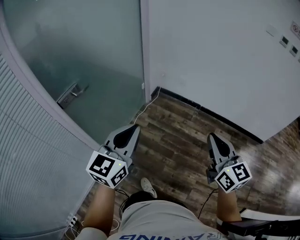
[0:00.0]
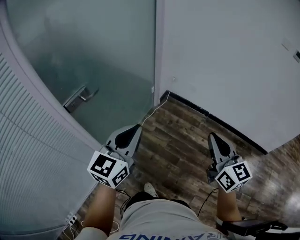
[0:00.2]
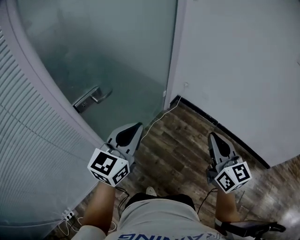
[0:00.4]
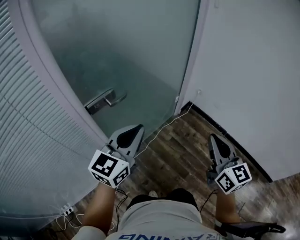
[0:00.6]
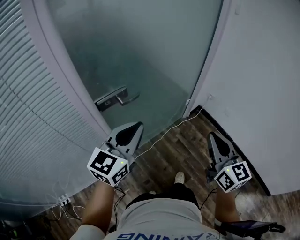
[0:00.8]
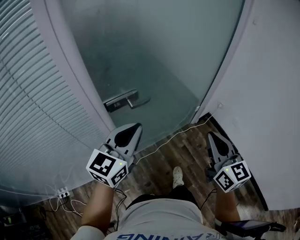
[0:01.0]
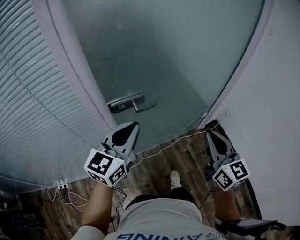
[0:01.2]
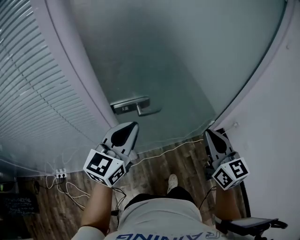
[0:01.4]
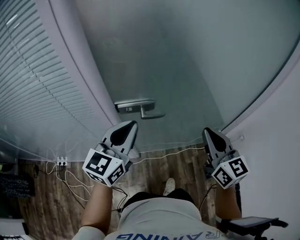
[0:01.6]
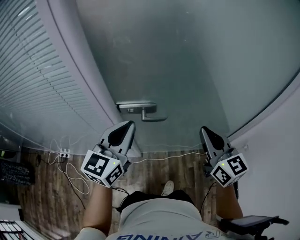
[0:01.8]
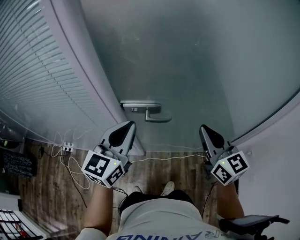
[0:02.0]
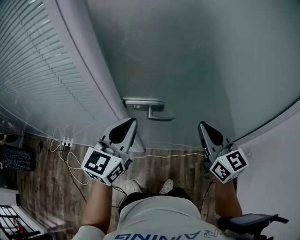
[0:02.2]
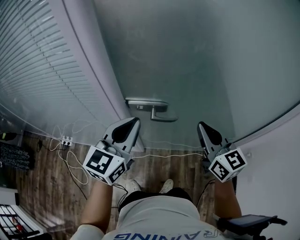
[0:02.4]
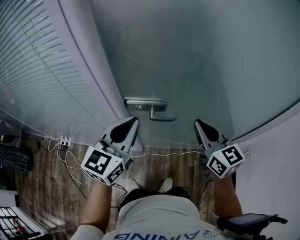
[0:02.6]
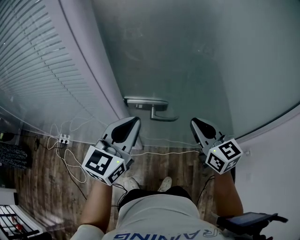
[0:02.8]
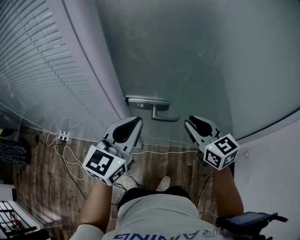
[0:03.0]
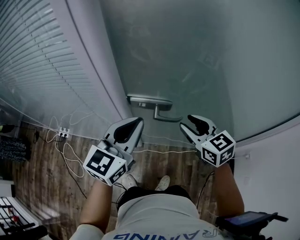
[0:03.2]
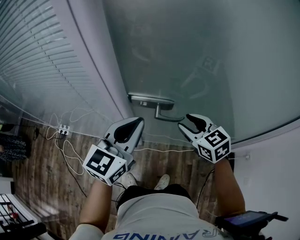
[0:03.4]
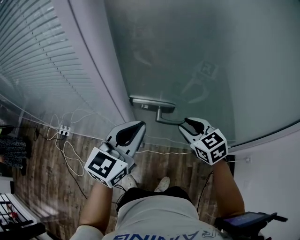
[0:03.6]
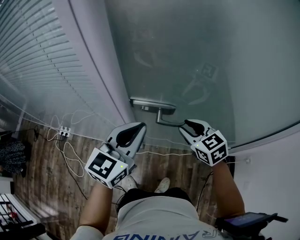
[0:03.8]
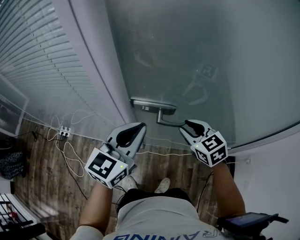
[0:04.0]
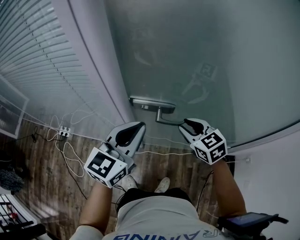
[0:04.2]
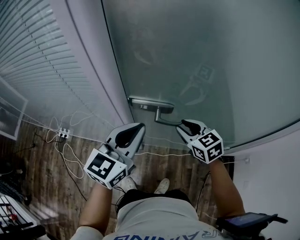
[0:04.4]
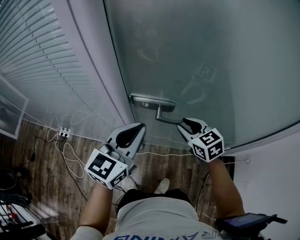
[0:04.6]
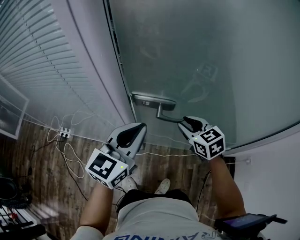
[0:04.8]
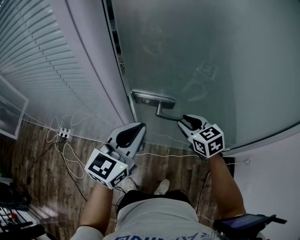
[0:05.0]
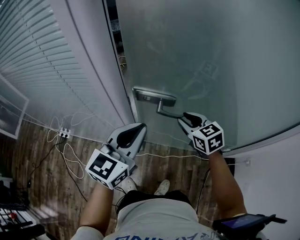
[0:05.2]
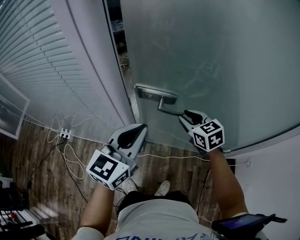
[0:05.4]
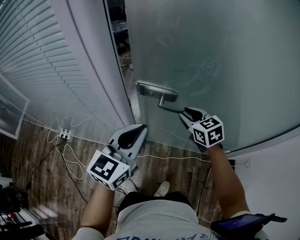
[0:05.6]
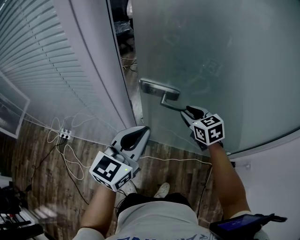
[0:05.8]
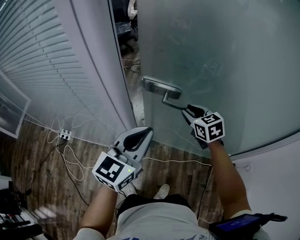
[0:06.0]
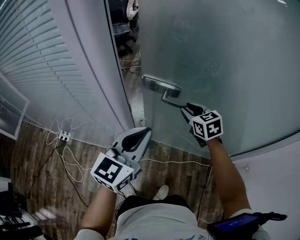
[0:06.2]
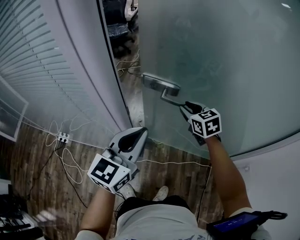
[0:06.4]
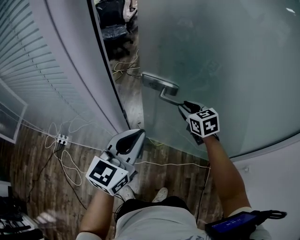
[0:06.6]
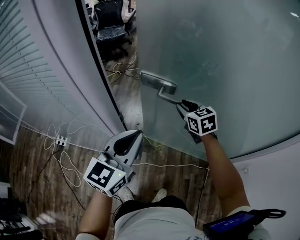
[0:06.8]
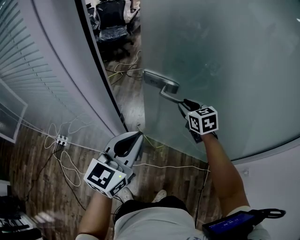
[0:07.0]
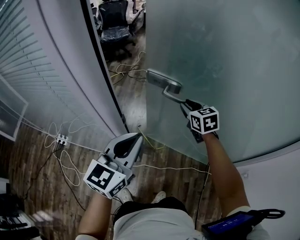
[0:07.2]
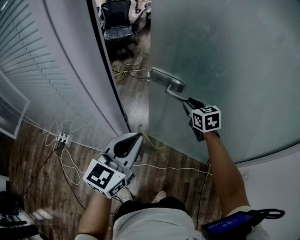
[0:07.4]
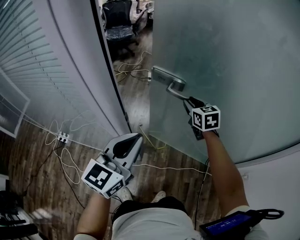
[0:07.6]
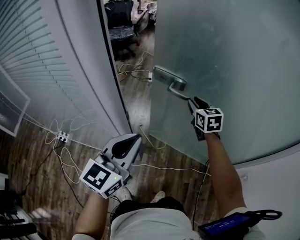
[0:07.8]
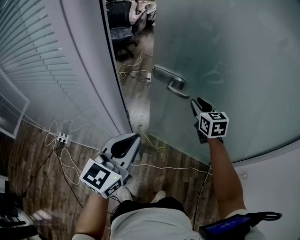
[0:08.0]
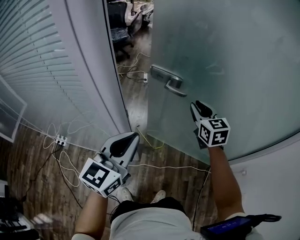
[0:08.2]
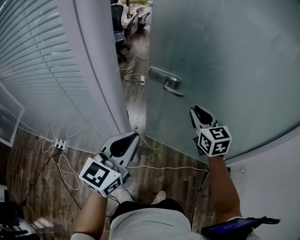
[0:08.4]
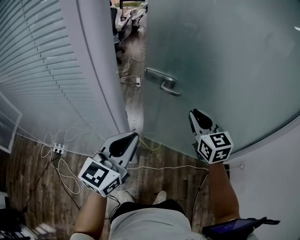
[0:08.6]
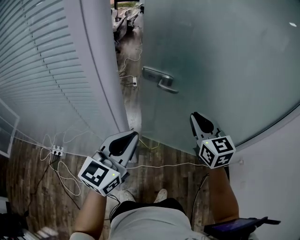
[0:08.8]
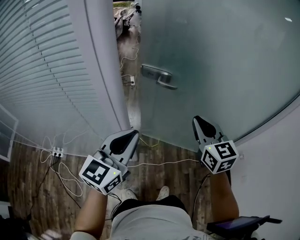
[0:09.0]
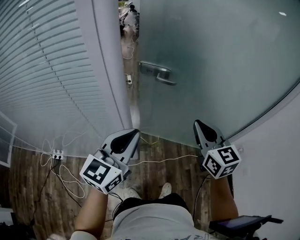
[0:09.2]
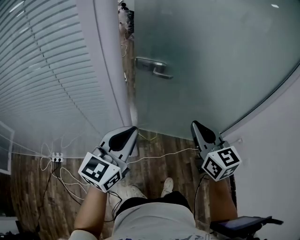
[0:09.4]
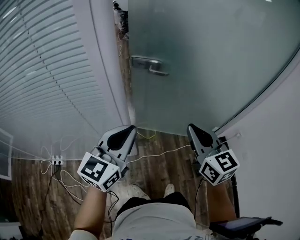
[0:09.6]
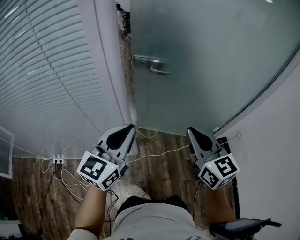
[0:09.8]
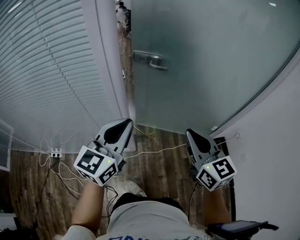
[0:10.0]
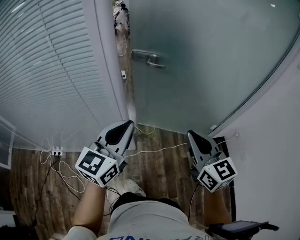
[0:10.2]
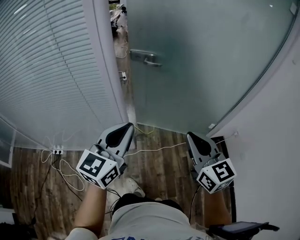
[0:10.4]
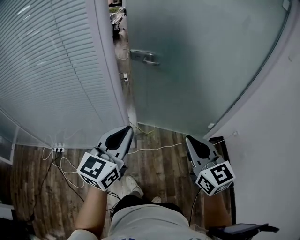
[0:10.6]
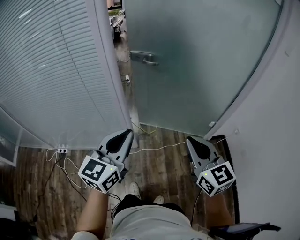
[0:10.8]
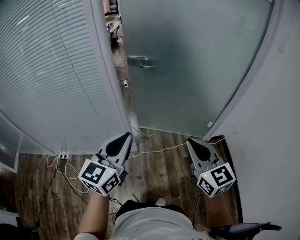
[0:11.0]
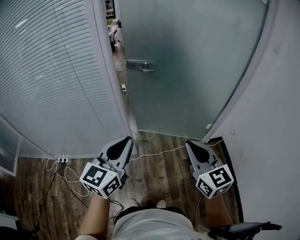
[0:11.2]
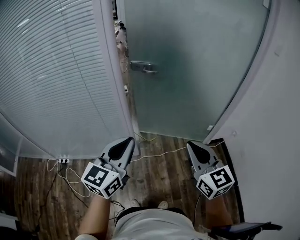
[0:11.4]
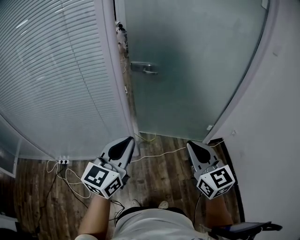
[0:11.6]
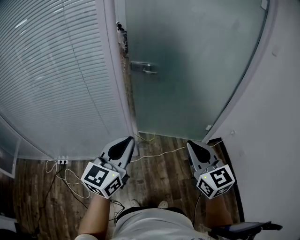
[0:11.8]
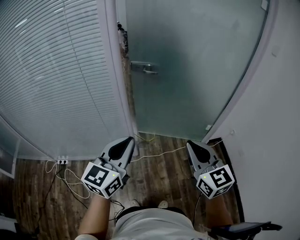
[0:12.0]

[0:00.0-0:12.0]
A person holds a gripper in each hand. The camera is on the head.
0:00.0 to 0:01.6: The right gripper moves roughly 50 cm, and rotates roughly 60 degrees, while the left gripper moves approximately 35 cm, and rotates roughly 50 degrees.
0:01.6 to 0:03.0: The right gripper shifts some 15 cm forward, to the left and downward, and turns by some 30 degrees.
0:03.0 to 0:04.4: The right gripper goes roughly 10 cm downward.
0:04.4 to 0:06.0: The right gripper moves forward, approximately 10 cm.
0:06.0 to 0:07.6: The right gripper shifts approximately 10 cm forward.
0:07.6 to 0:09.0: The right gripper shifts roughly 25 cm backward and upward, and closes up. The left gripper shifts approximately 5 cm backward.
0:09.0 to 0:10.4: The right gripper travels backward by approximately 25 cm, while the left gripper shifts about 15 cm backward.
0:10.4 to 0:12.0: The grippers both shift backward by approximately 10 cm.

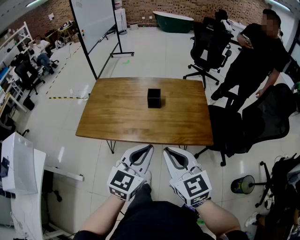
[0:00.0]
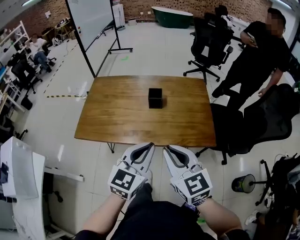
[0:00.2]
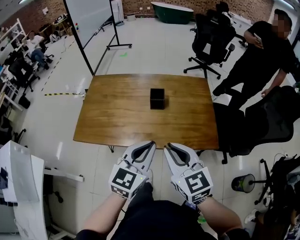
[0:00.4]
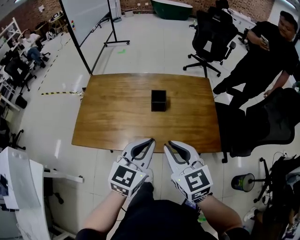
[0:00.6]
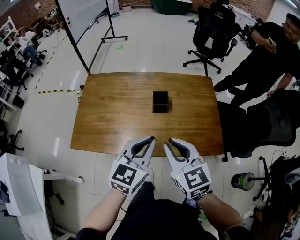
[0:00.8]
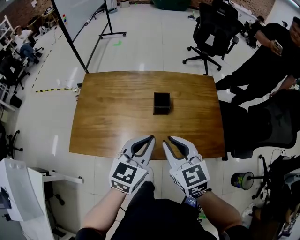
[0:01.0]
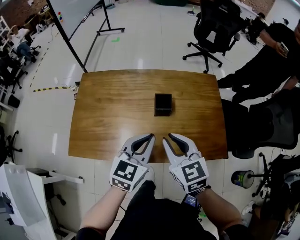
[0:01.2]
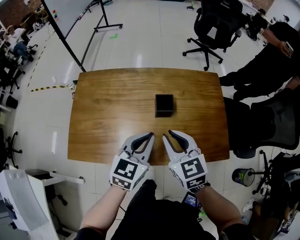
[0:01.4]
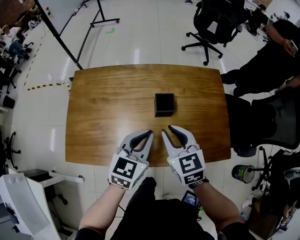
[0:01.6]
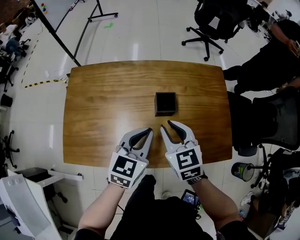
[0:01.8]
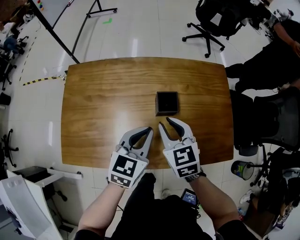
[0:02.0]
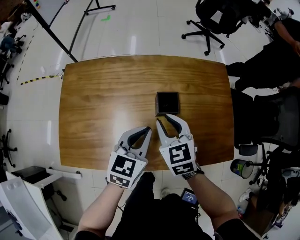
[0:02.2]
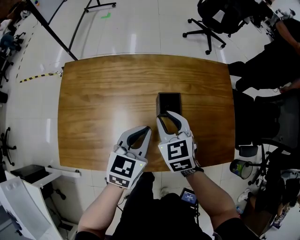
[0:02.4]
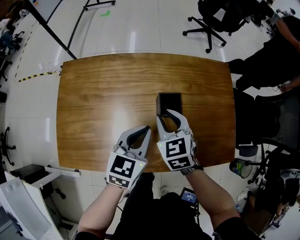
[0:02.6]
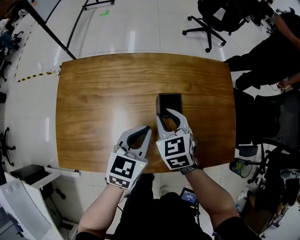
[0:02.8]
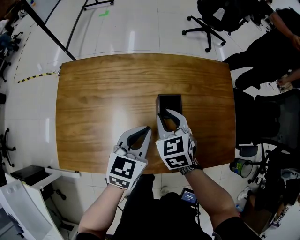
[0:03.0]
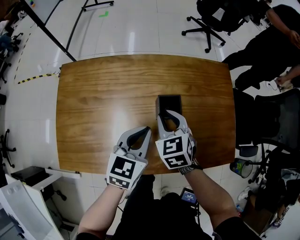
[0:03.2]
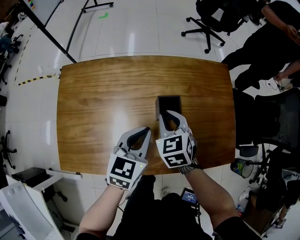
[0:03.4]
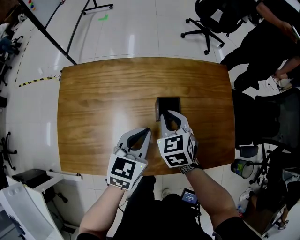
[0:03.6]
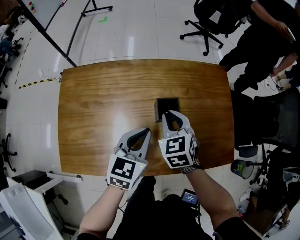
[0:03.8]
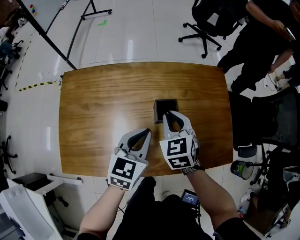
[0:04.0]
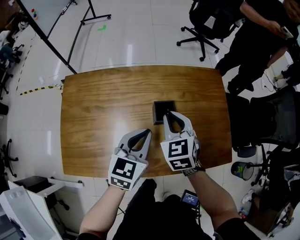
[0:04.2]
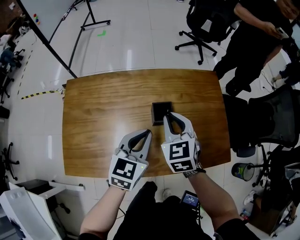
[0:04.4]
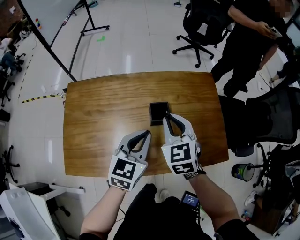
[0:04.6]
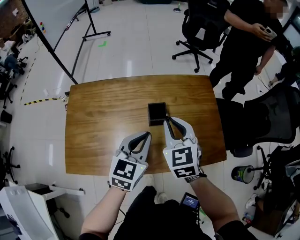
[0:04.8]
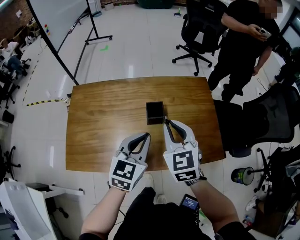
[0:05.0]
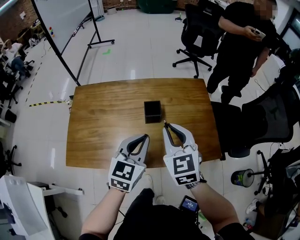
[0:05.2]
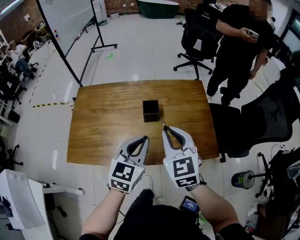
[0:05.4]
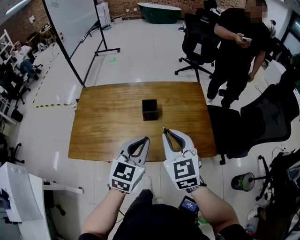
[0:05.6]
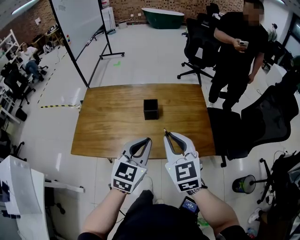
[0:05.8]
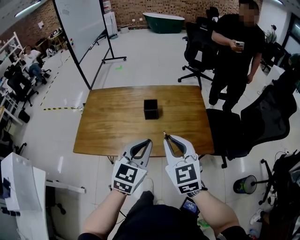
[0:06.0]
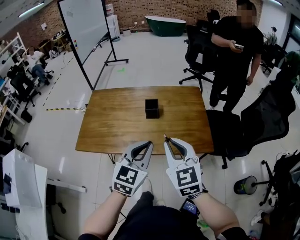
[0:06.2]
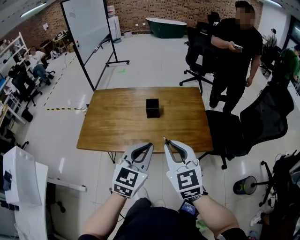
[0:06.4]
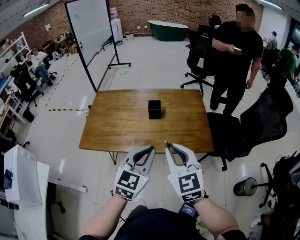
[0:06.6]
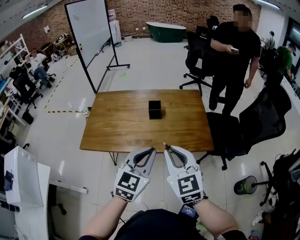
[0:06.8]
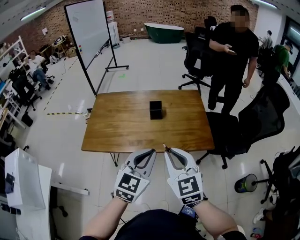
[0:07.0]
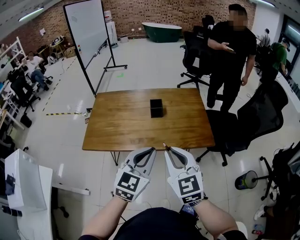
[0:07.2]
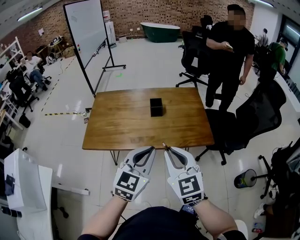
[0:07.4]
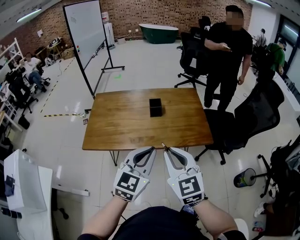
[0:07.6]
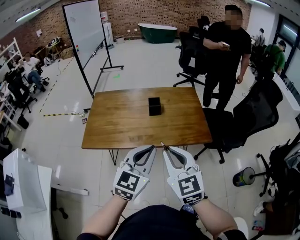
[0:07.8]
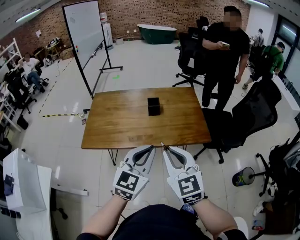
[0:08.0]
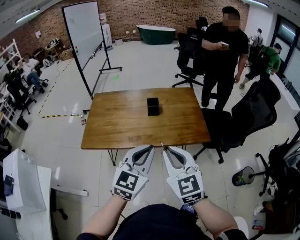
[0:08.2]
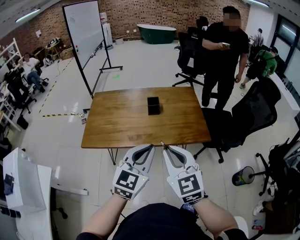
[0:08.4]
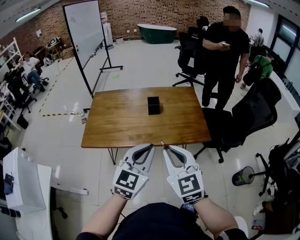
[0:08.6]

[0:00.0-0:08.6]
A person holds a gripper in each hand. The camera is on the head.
0:00.0 to 0:01.4: The right gripper heads forward and downward, covering about 35 cm, while the left gripper heads forward, covering roughly 30 cm.
0:01.4 to 0:02.8: The left gripper goes roughly 15 cm downward and forward; the right gripper moves forward and downward, about 20 cm.
0:02.8 to 0:04.4: The two grippers go about 10 cm upward.
0:04.4 to 0:05.8: The two grippers go approximately 30 cm backward, upward and to the right.
0:05.8 to 0:07.2: Both grippers travel together backward, about 15 cm.
0:07.2 to 0:08.6: The grippers make only small movements.

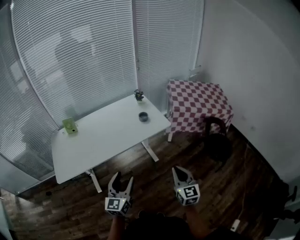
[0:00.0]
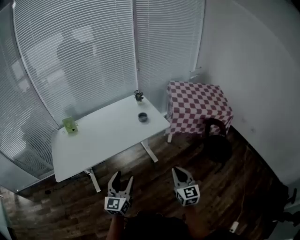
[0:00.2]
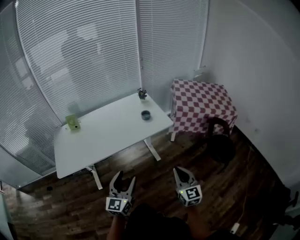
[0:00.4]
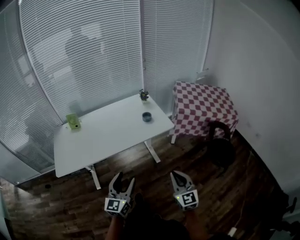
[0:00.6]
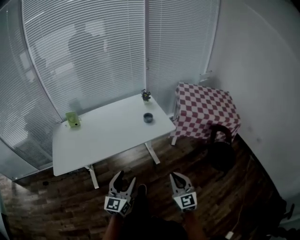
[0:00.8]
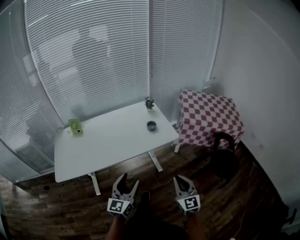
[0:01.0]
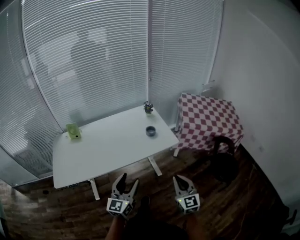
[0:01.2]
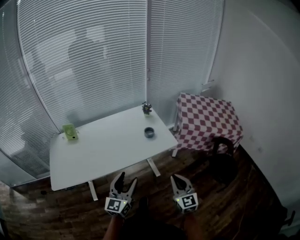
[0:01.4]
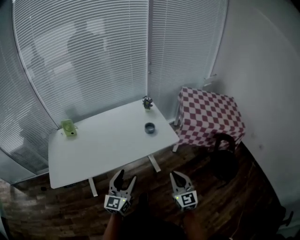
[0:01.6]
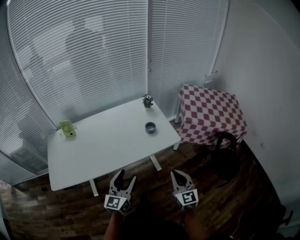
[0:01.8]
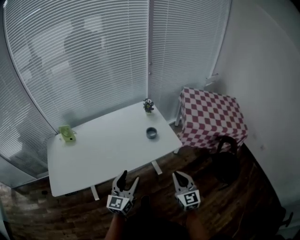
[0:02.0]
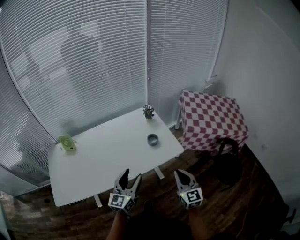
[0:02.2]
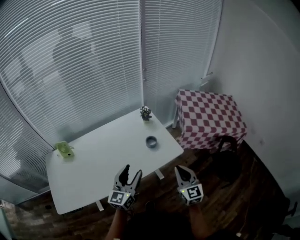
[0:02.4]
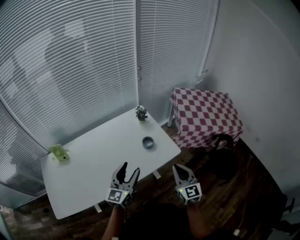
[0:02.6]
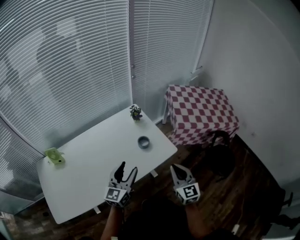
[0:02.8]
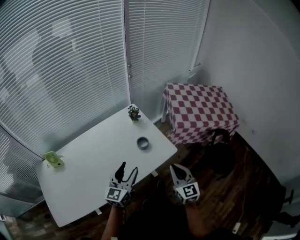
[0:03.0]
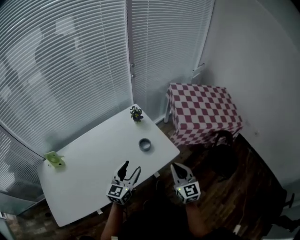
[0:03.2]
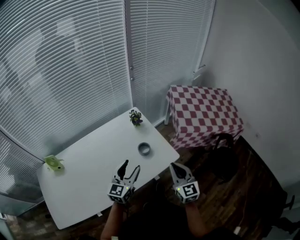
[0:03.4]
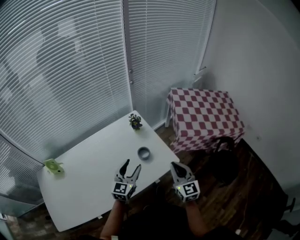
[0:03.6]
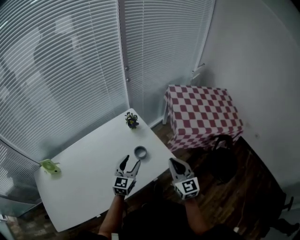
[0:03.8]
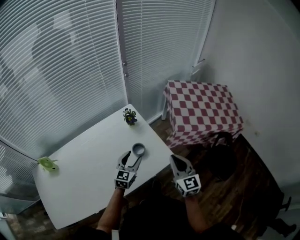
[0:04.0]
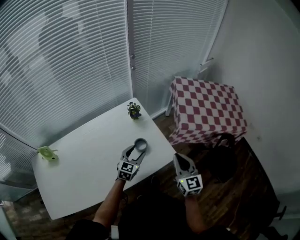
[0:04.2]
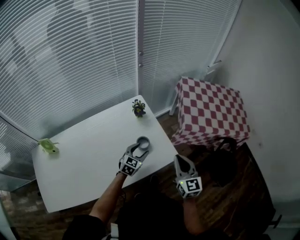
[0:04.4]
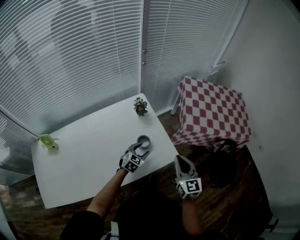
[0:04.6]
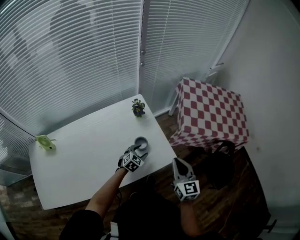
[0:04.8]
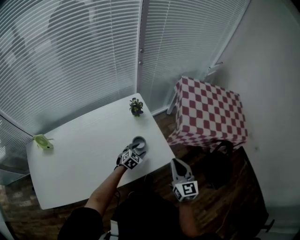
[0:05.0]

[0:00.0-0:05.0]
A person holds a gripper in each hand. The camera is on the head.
0:00.0 to 0:01.6: The grippers both shift forward by some 15 cm.
0:01.6 to 0:03.4: The two grippers go some 25 cm forward.
0:03.4 to 0:05.0: The left gripper travels downward and forward by roughly 30 cm, and tilts its fingers approximately 40 degrees downward; the right gripper moves forward, approximately 5 cm.
